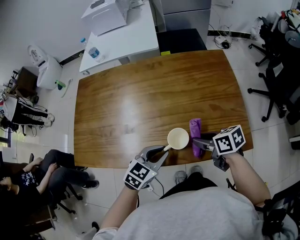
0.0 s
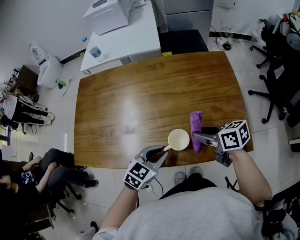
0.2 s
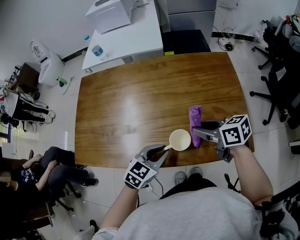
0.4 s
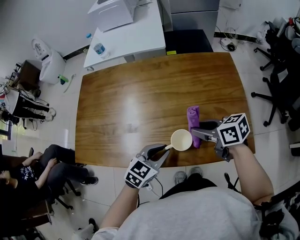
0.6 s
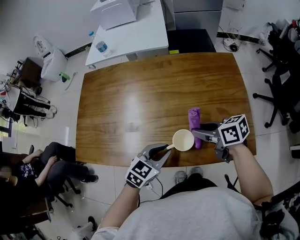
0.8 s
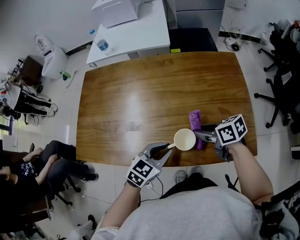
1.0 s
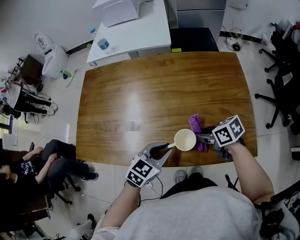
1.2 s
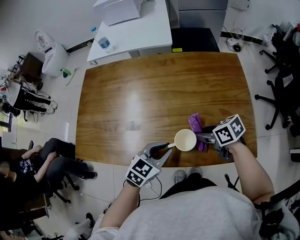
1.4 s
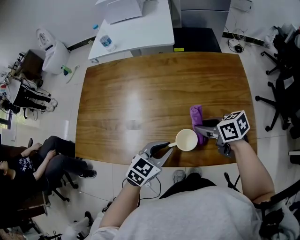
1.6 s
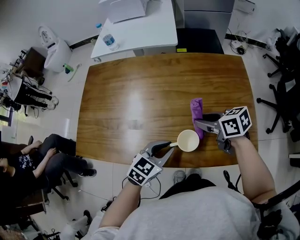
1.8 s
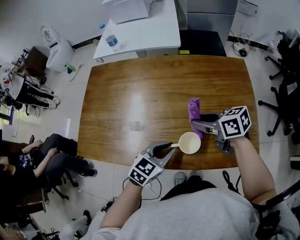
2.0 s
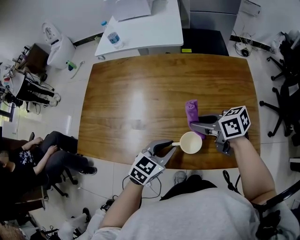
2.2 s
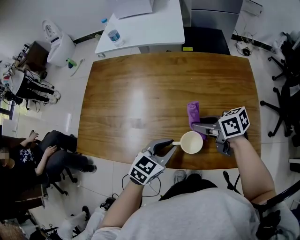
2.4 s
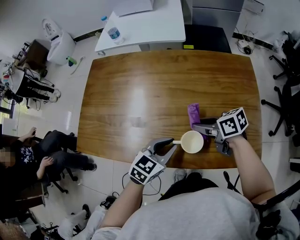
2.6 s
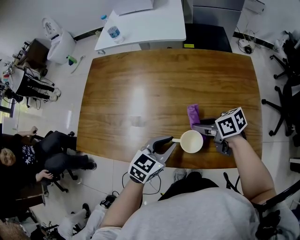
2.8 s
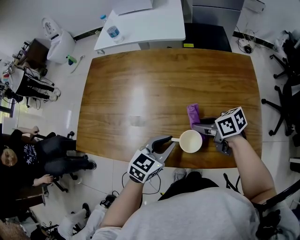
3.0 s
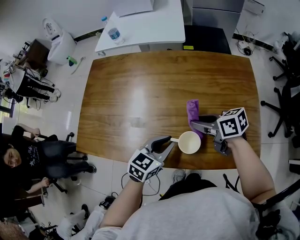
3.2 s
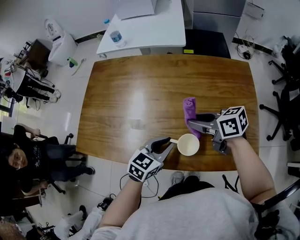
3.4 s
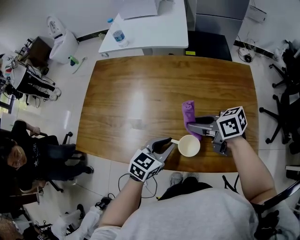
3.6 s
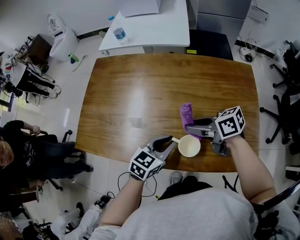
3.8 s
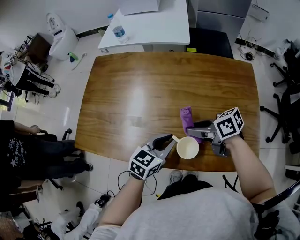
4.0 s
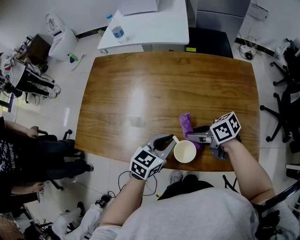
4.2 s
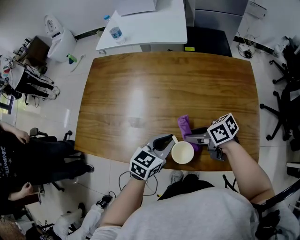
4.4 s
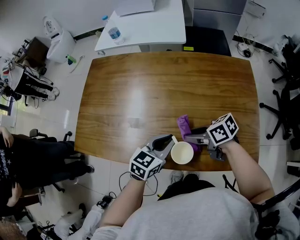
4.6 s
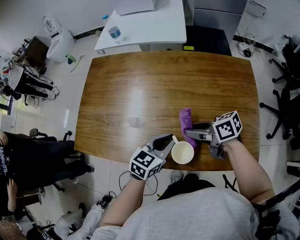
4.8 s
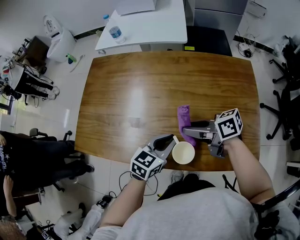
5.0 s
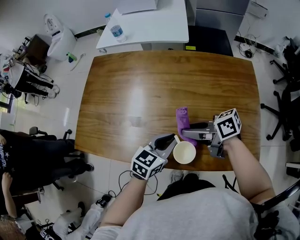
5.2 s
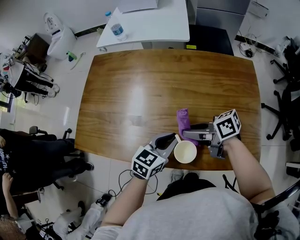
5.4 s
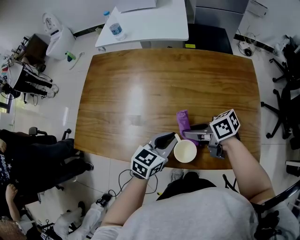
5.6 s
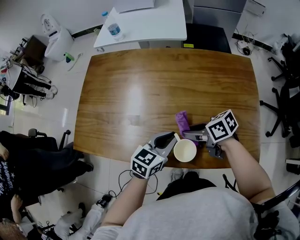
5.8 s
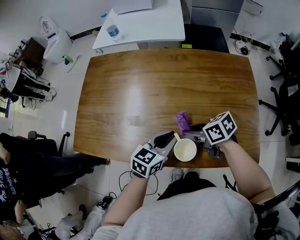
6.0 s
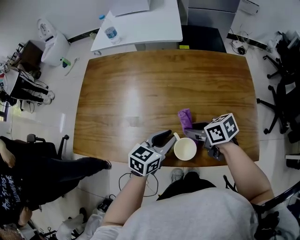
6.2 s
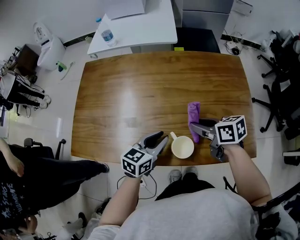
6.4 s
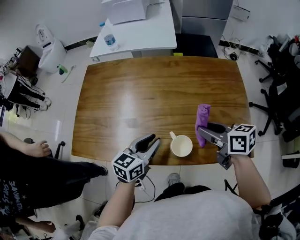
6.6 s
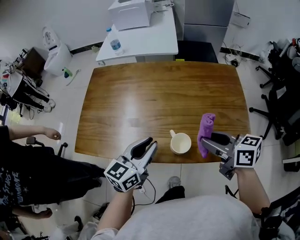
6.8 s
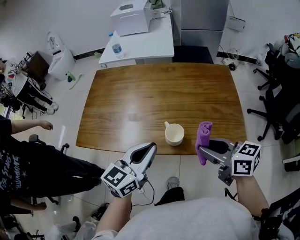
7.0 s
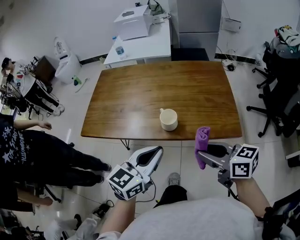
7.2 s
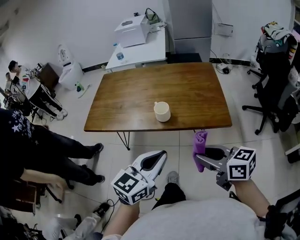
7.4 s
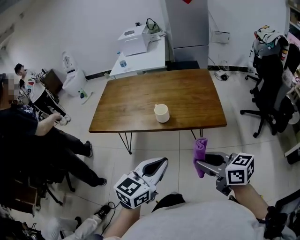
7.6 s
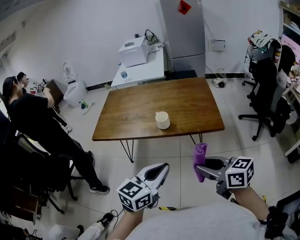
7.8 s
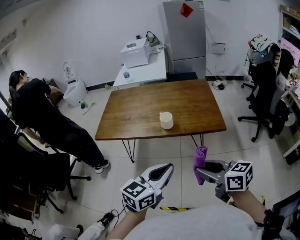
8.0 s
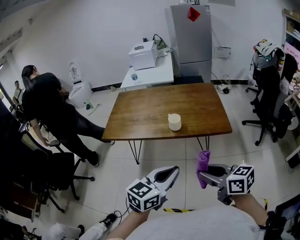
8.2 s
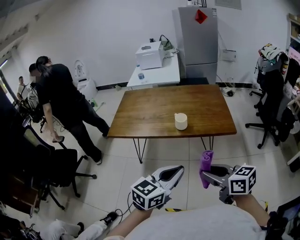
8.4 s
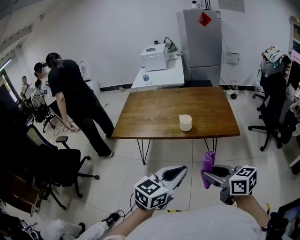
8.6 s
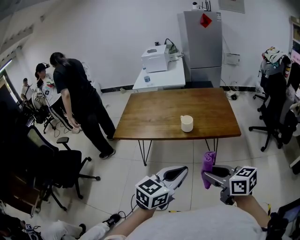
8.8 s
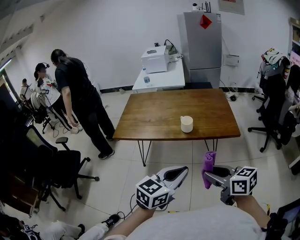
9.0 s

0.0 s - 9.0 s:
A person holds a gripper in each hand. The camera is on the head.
0.0 s - 1.6 s: The right gripper swings up and down, roughly 10 cm each way, with 2 reversals.
3.0 s - 4.4 s: The right gripper goes upward and returns, some 5 cm each way.
6.0 s - 7.6 s: Both grippers are carried roughly 50 cm. The right gripper changes its angle by roughly 40 degrees.
7.6 s - 9.0 s: The left gripper is displaced backward and to the left by approximately 10 cm. The right gripper heads to the left and backward, covering roughly 15 cm.

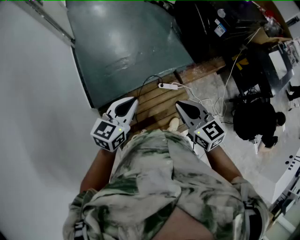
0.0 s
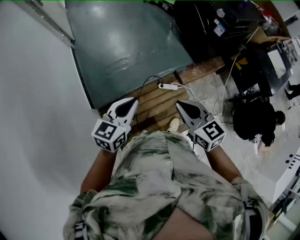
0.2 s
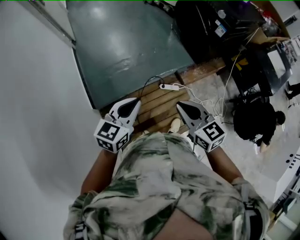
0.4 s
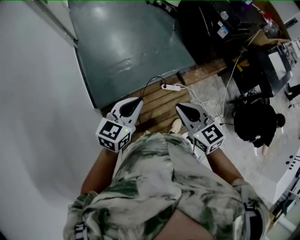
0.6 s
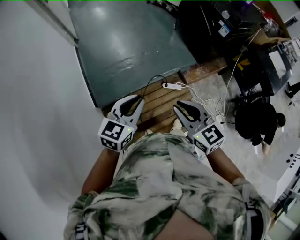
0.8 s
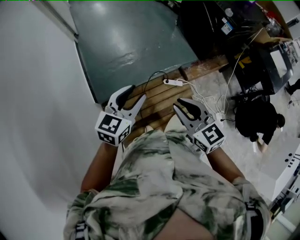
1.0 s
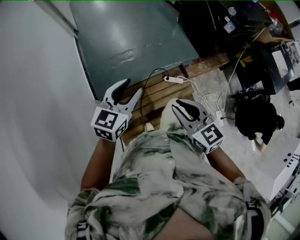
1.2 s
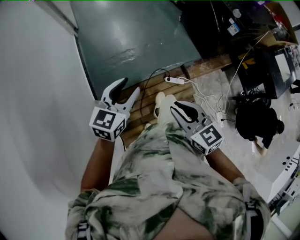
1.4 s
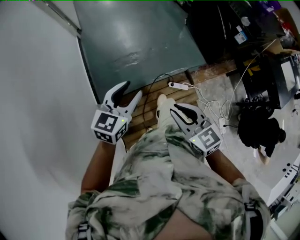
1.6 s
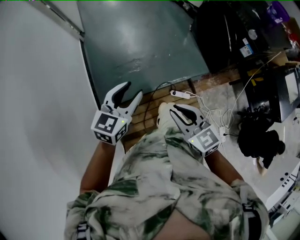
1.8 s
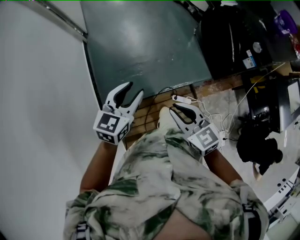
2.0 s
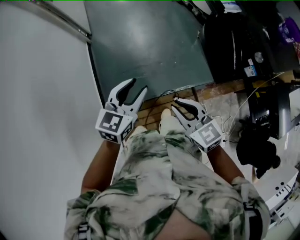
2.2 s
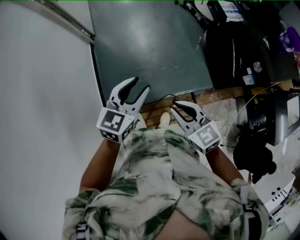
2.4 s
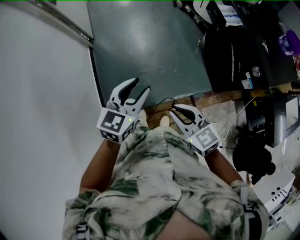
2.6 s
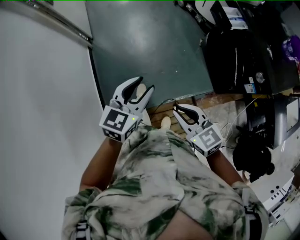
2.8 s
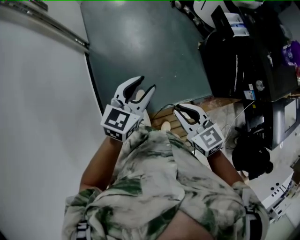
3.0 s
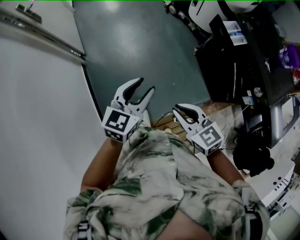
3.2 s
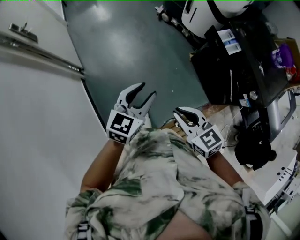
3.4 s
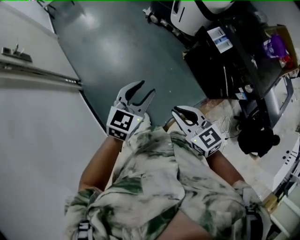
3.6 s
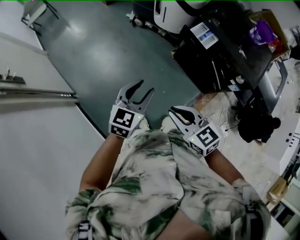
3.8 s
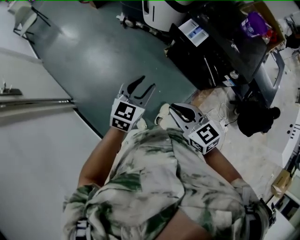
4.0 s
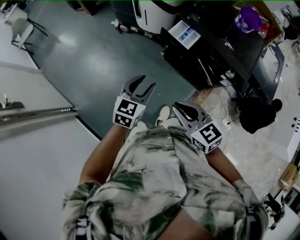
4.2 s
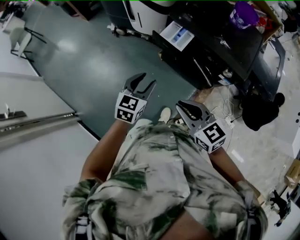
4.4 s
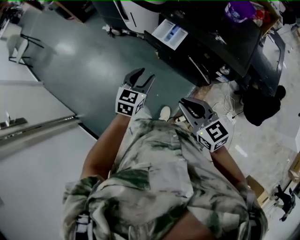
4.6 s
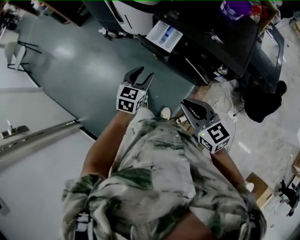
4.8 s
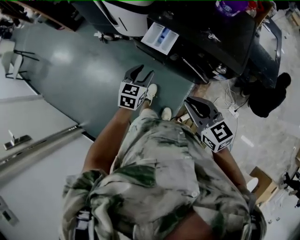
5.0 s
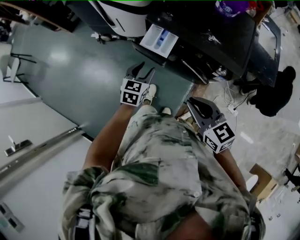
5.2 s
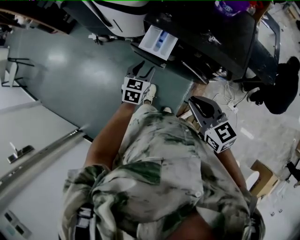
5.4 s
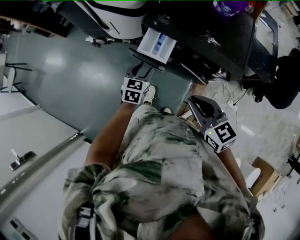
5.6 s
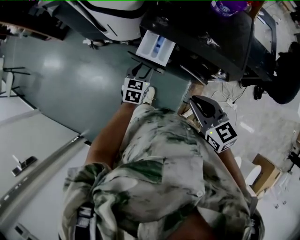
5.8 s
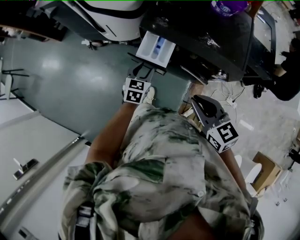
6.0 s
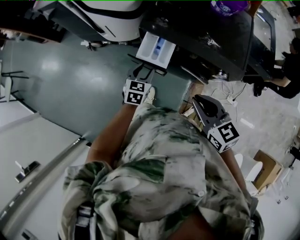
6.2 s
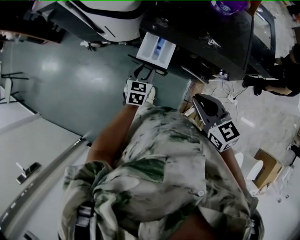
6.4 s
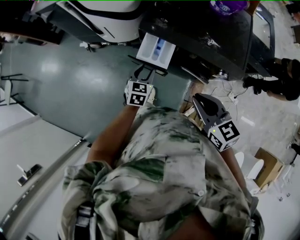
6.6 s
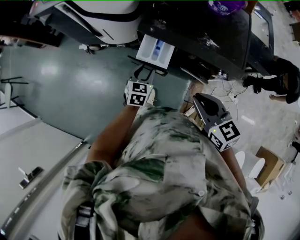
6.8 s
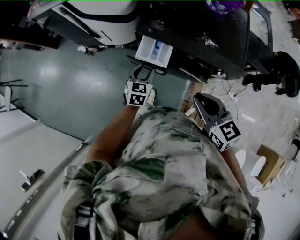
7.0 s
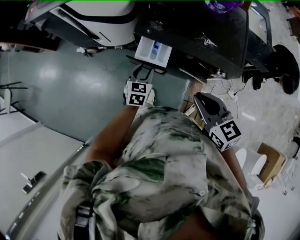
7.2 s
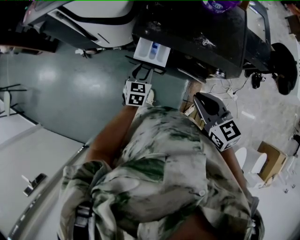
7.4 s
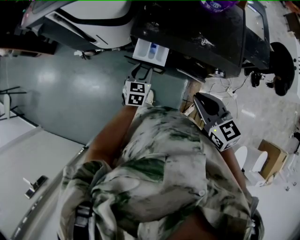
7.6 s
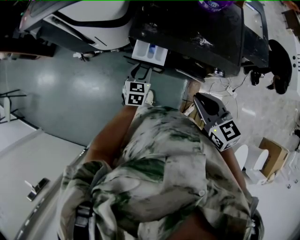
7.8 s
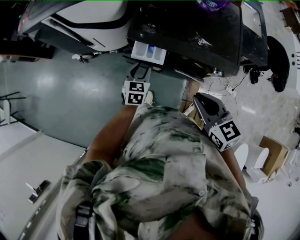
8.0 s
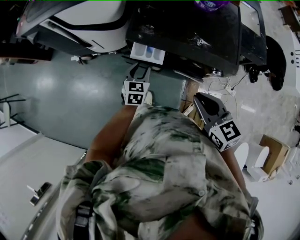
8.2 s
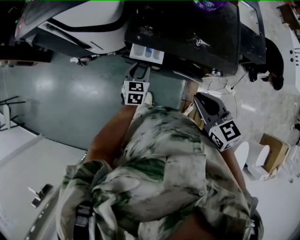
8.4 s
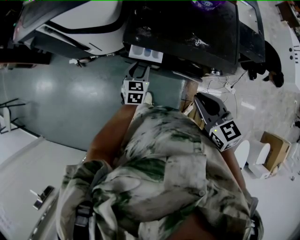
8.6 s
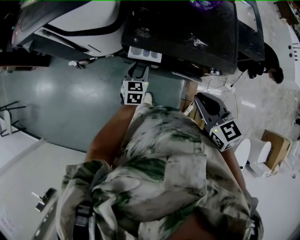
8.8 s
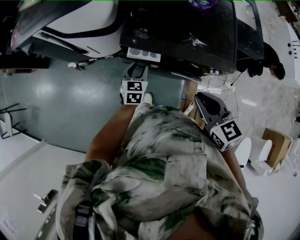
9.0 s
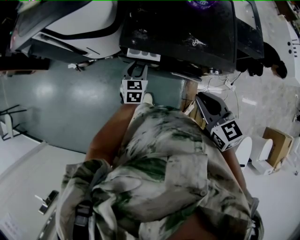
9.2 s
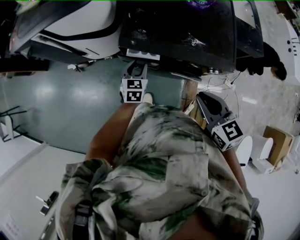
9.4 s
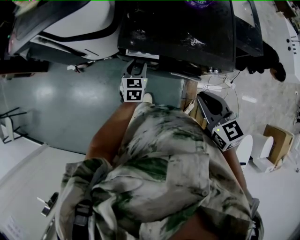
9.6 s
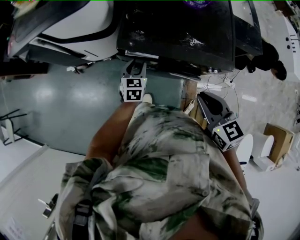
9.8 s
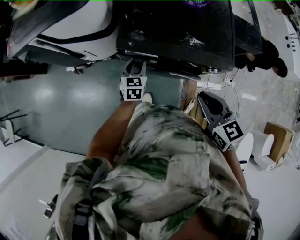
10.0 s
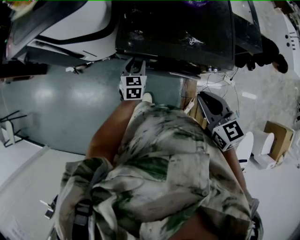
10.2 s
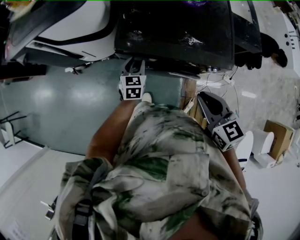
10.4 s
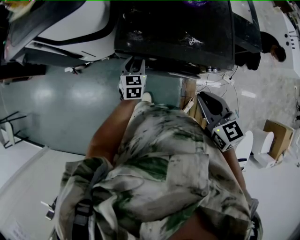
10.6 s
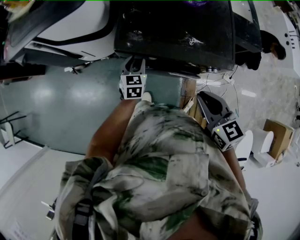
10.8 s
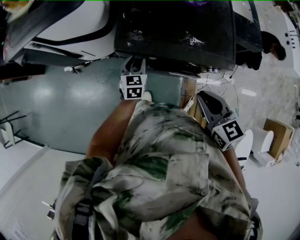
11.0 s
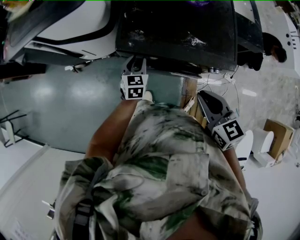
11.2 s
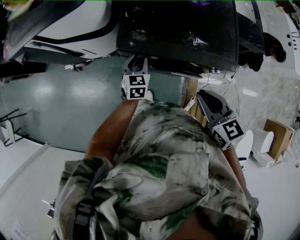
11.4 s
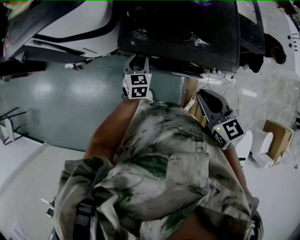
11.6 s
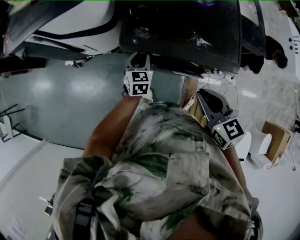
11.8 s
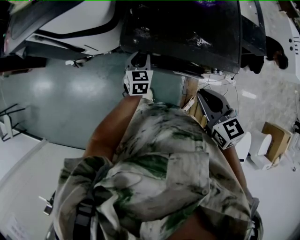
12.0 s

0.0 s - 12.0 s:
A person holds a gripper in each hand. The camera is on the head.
0.0 s - 1.6 s: The left gripper is displaced forward and to the left by approximately 15 cm, and opens its fingers. The right gripper is displaced to the left by about 10 cm.
1.6 s - 3.0 s: Both grippers are carried forward, roughly 40 cm.
3.0 s - 4.4 s: The left gripper shifts by approximately 35 cm, and swivels about 30 degrees. The right gripper shifts by about 30 cm, and swivels about 30 degrees.
4.4 s - 6.0 s: The left gripper travels forward and downward by about 25 cm; the right gripper is displaced forward and to the right by approximately 20 cm, and changes its angle by roughly 20 degrees.
6.0 s - 7.6 s: The grippers stay close to where they were, moving slightly.
7.6 s - 9.0 s: The left gripper goes about 5 cm forward.
9.0 s - 10.4 s: The grippers stay close to where they were, moving slightly.
10.4 s - 12.0 s: The grippers move only a little.

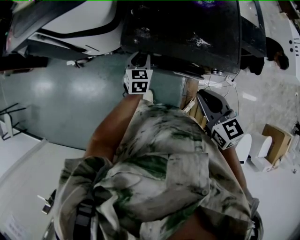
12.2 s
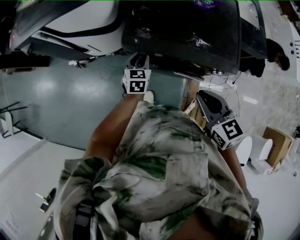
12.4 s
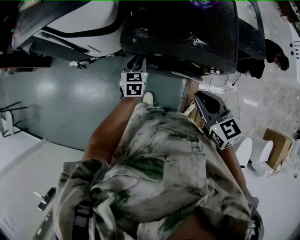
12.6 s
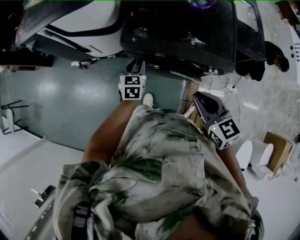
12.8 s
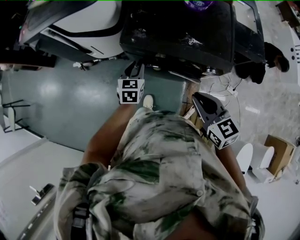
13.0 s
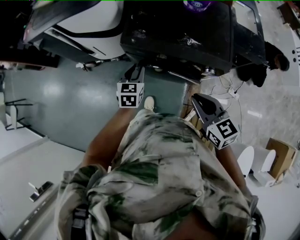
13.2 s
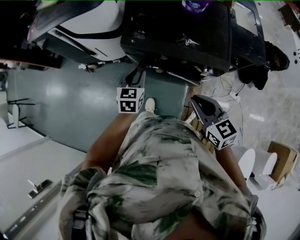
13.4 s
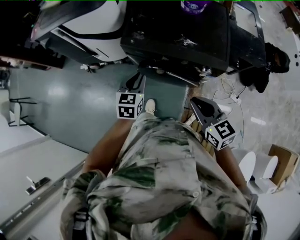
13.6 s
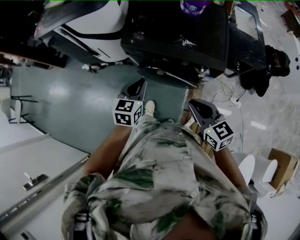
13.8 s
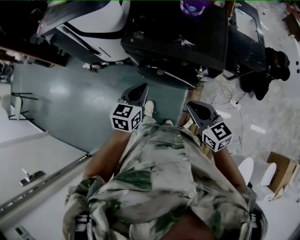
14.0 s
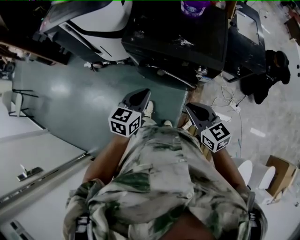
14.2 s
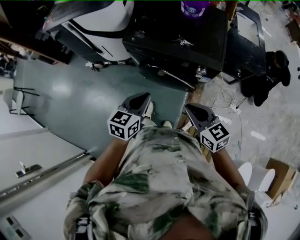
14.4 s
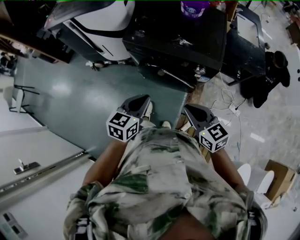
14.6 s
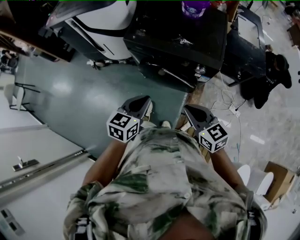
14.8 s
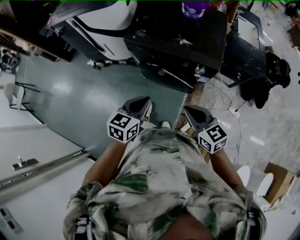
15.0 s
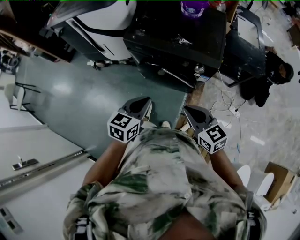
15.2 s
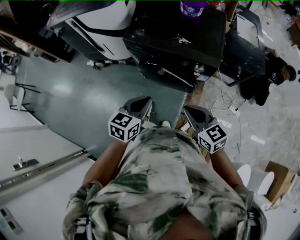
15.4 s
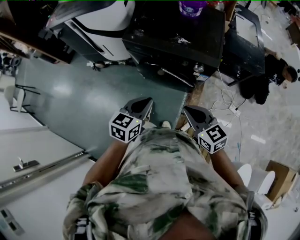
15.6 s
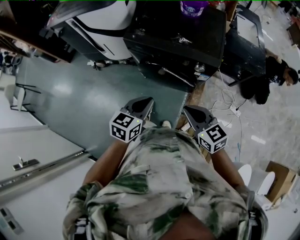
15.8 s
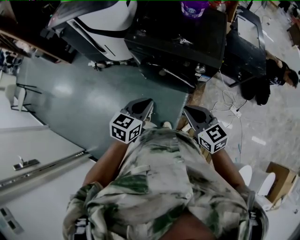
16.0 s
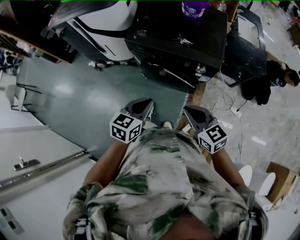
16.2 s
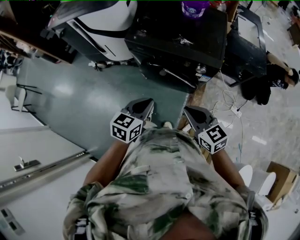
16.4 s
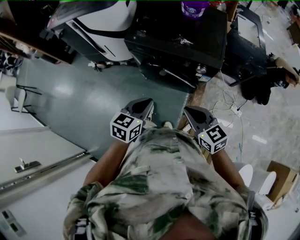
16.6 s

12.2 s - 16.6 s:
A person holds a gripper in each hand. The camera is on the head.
12.2 s - 13.6 s: The right gripper travels backward and to the right by about 15 cm, while the left gripper travels backward and upward by some 20 cm.
13.6 s - 15.2 s: The left gripper goes approximately 20 cm backward. Meanwhile the right gripper heads backward, covering roughly 10 cm.
15.2 s - 16.6 s: The two grippers keep their place.
